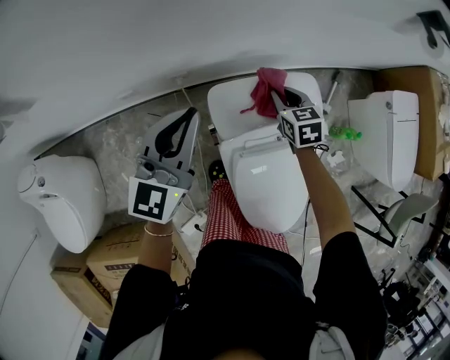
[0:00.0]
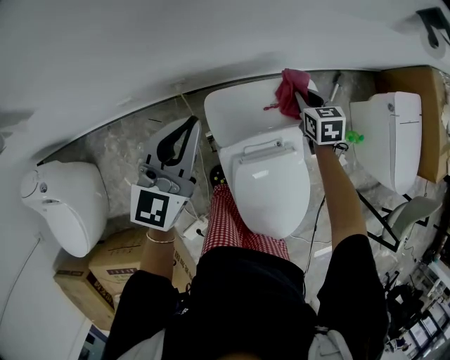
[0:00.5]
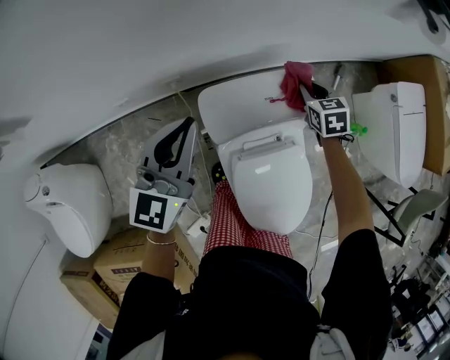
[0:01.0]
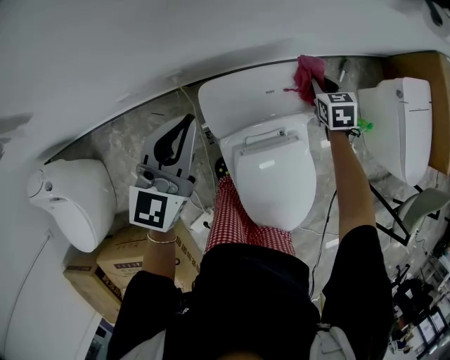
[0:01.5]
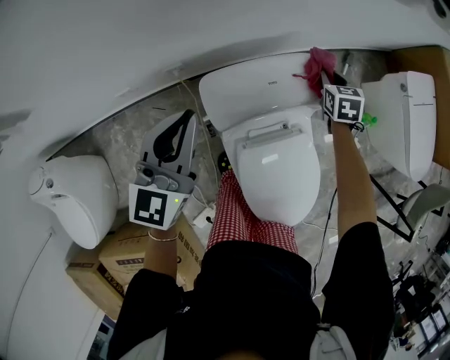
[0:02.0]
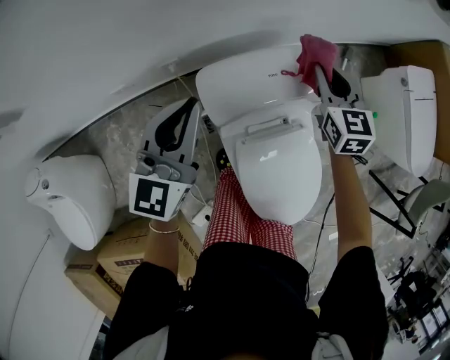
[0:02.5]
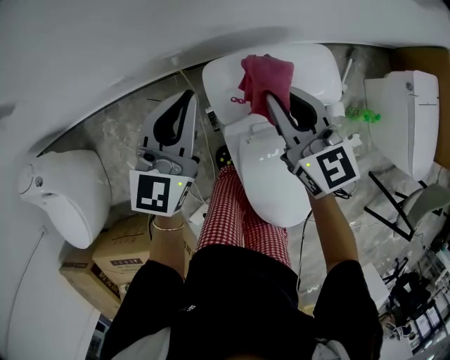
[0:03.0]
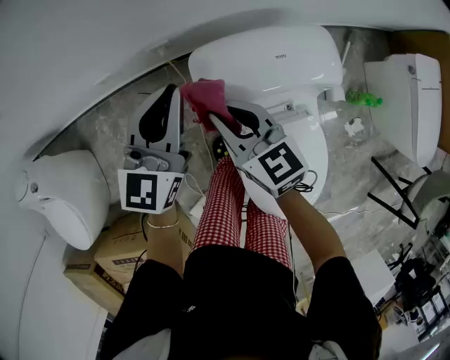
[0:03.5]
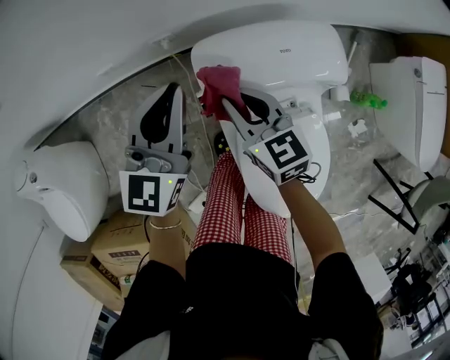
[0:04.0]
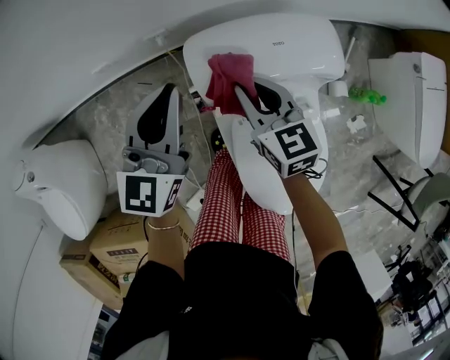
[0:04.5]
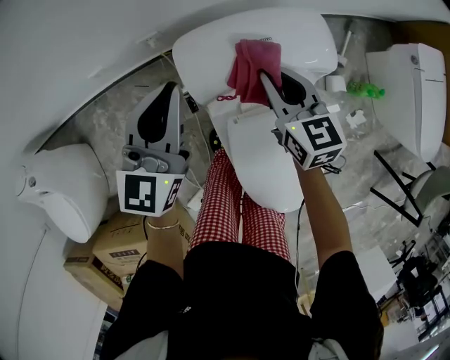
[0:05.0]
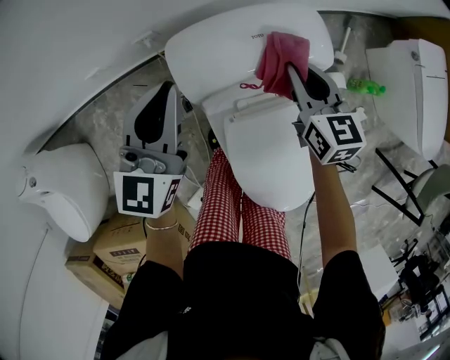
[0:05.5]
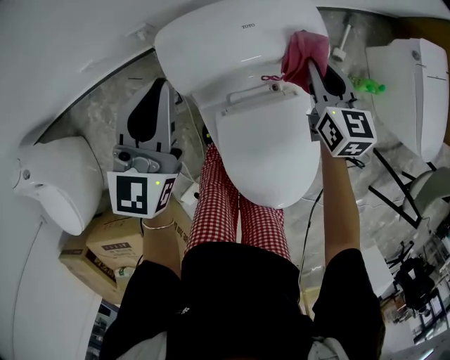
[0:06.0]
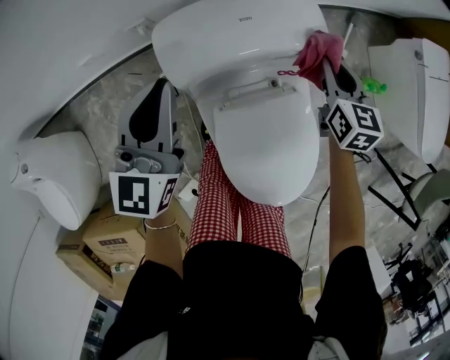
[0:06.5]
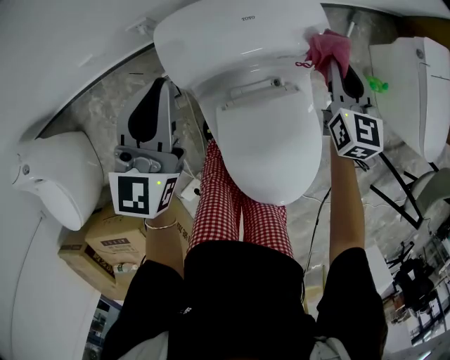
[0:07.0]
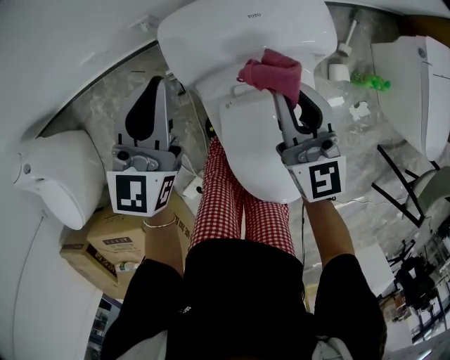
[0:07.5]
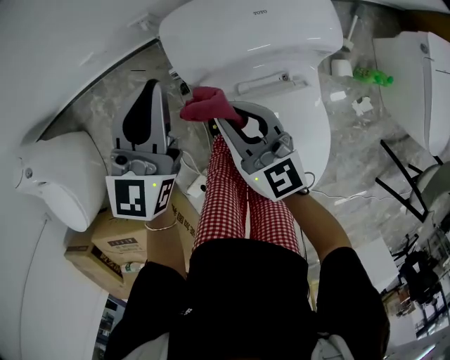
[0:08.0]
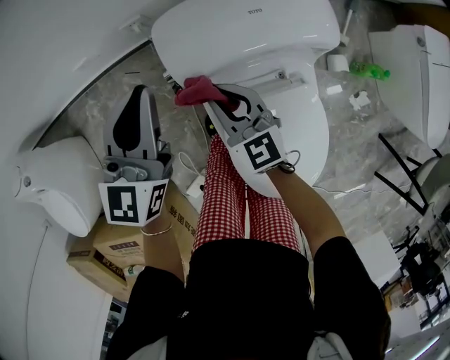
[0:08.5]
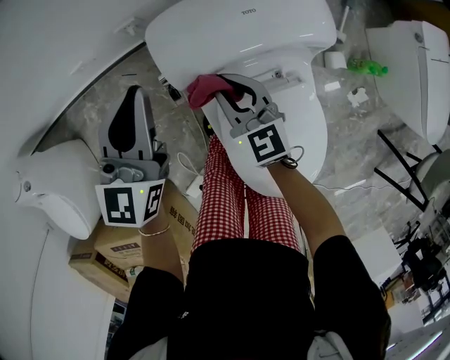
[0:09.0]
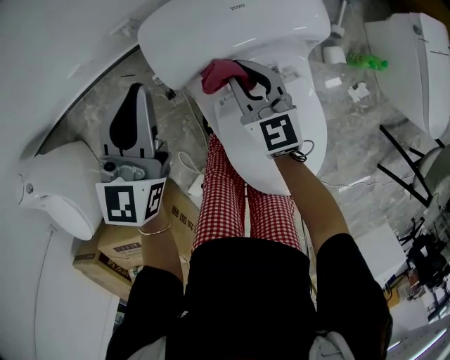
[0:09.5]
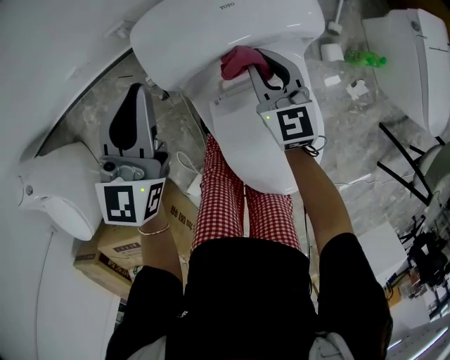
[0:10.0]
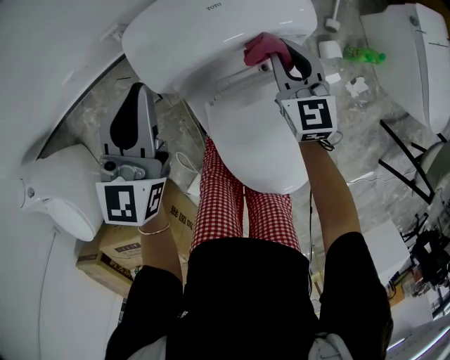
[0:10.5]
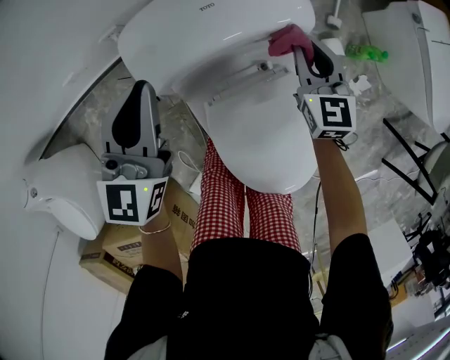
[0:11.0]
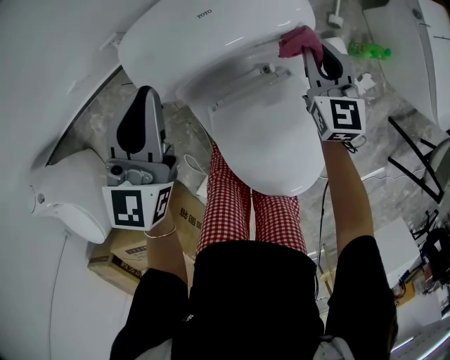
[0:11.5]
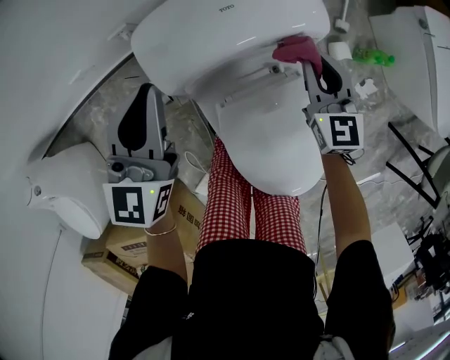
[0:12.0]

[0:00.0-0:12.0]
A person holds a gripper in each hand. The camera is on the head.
0:00.0 to 0:02.0: The right gripper moves to the right, some 15 cm.
0:02.0 to 0:04.0: The right gripper moves to the left and backward, approximately 35 cm, and turns by roughly 40 degrees; the left gripper goes some 10 cm downward.
0:04.0 to 0:06.0: The right gripper moves to the right, some 25 cm, and turns by some 30 degrees, while the left gripper heads to the right, covering roughly 5 cm.
0:06.0 to 0:08.0: The right gripper heads to the left and backward, covering roughly 25 cm, and swivels approximately 30 degrees.
0:08.0 to 0:10.0: The right gripper heads to the right, forward and downward, covering roughly 15 cm, and rotates some 20 degrees.
0:10.0 to 0:12.0: The right gripper goes about 10 cm to the right.

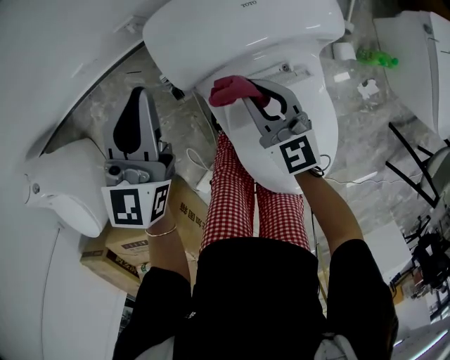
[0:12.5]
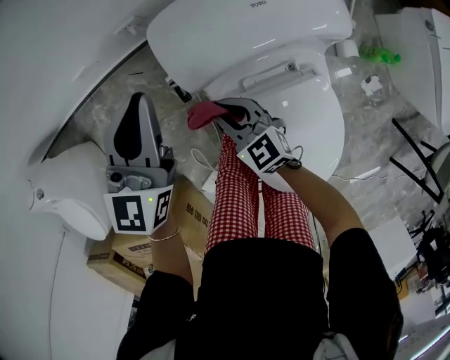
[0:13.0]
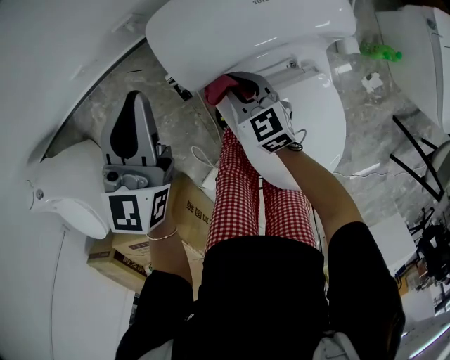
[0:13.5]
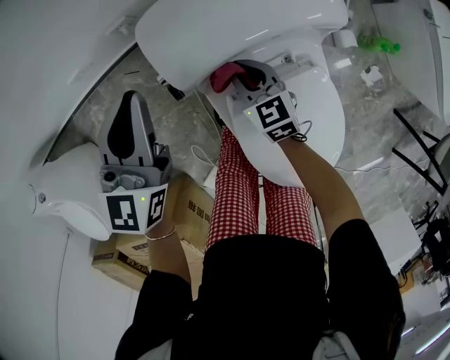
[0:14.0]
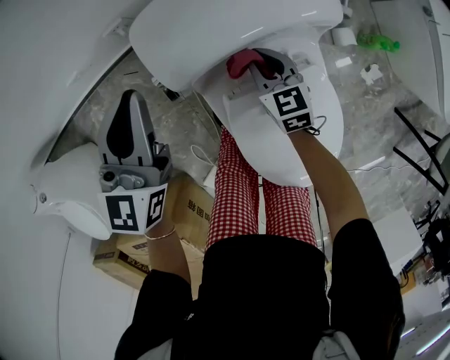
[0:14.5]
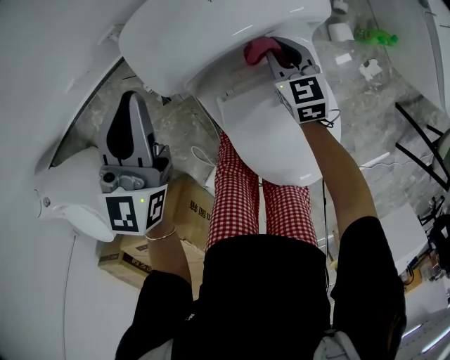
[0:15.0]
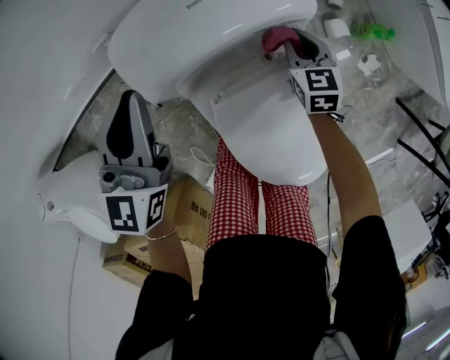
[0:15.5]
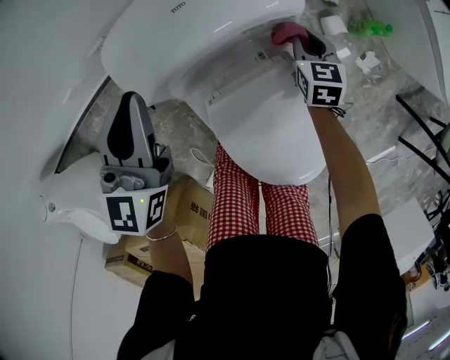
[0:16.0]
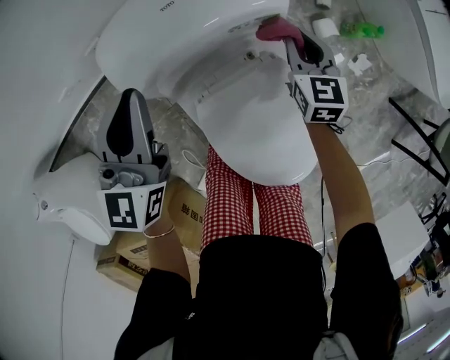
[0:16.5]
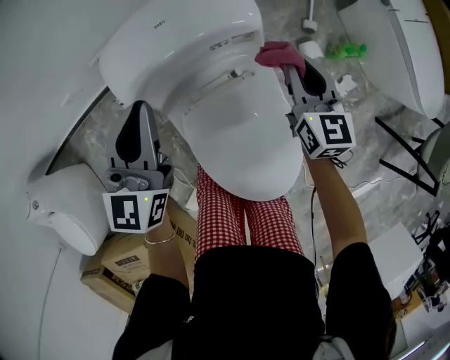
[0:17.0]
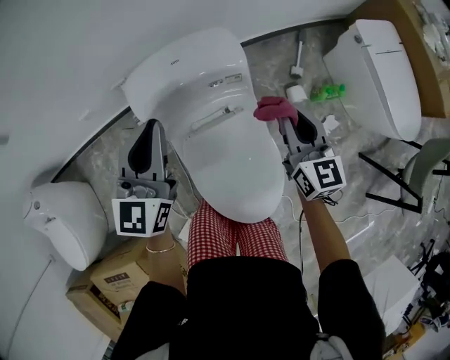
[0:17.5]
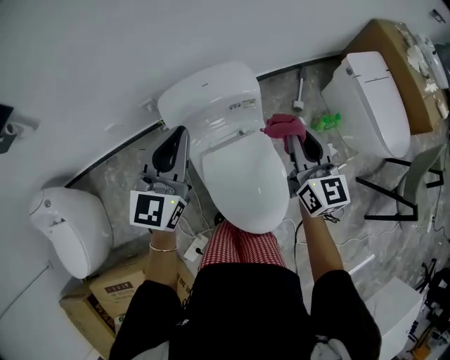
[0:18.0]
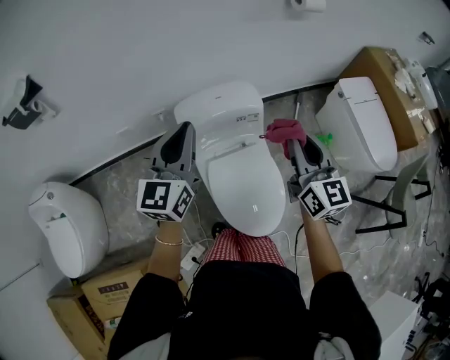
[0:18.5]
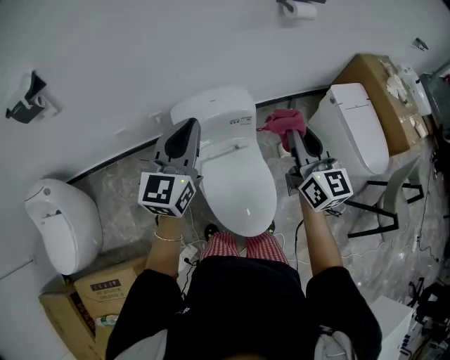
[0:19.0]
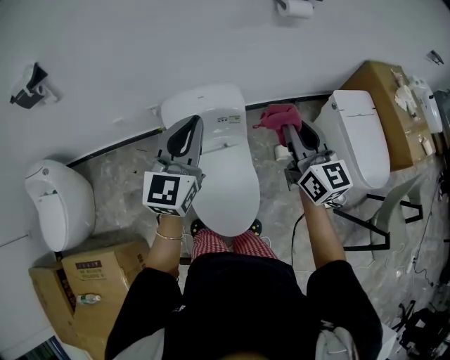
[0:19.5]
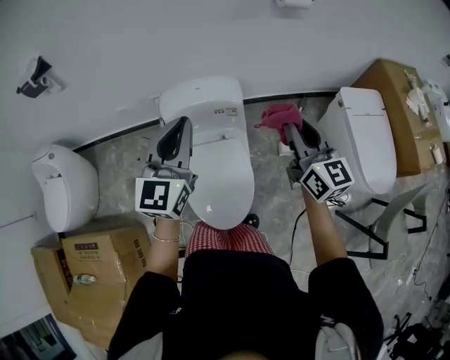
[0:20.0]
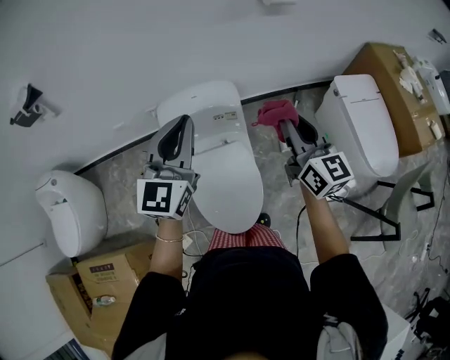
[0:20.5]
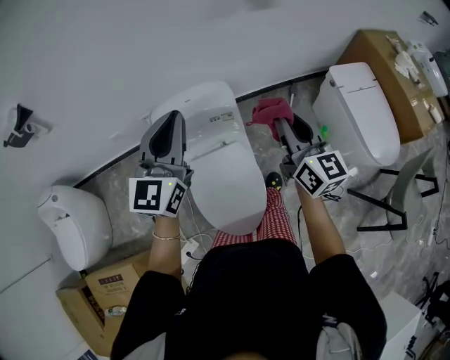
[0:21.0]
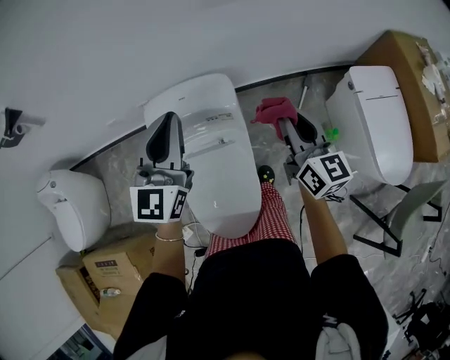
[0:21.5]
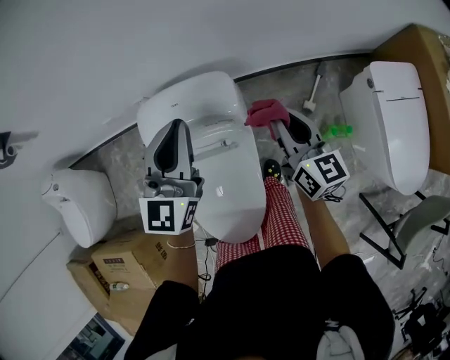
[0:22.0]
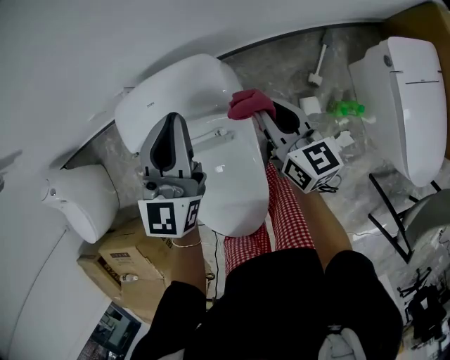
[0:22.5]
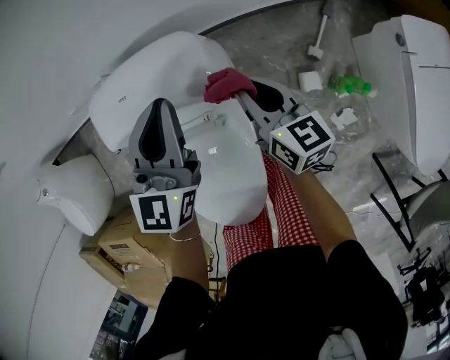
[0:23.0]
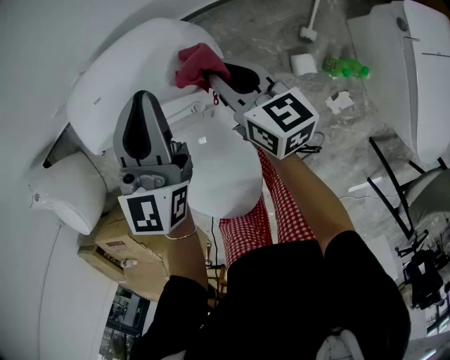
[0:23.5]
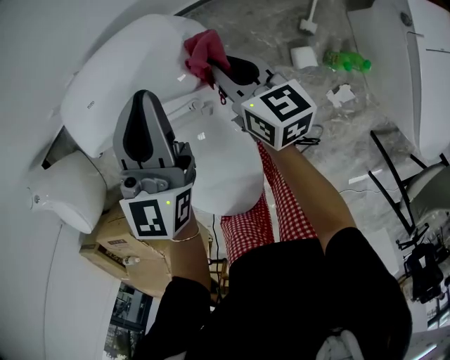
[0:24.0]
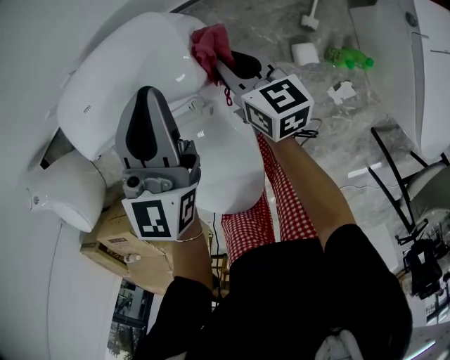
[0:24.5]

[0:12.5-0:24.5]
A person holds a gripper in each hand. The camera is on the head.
0:12.5 to 0:14.5: The right gripper is displaced downward by approximately 10 cm, and goes to the left and returns, roughly 10 cm each way.
0:14.5 to 0:16.5: The right gripper travels to the right by approximately 20 cm, and changes its angle by roughly 20 degrees. The left gripper moves to the right, approximately 10 cm.
0:16.5 to 0:18.5: The right gripper moves upward and backward, some 50 cm, and rotates roughly 30 degrees. Meanwhile the left gripper goes roughly 30 cm upward and backward.
0:18.5 to 0:20.5: The grippers both shift to the right by approximately 15 cm.
0:20.5 to 0:22.5: The right gripper shifts some 35 cm downward and forward, and rotates roughly 30 degrees, while the left gripper heads forward, downward and to the right, covering about 30 cm.
0:22.5 to 0:24.5: The two grippers go approximately 15 cm downward.

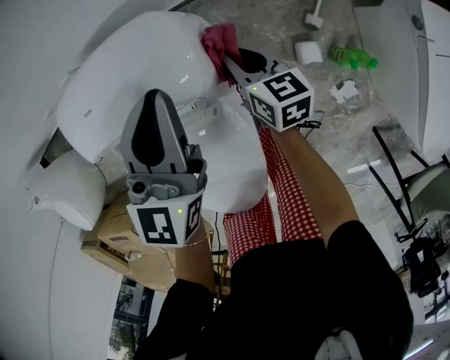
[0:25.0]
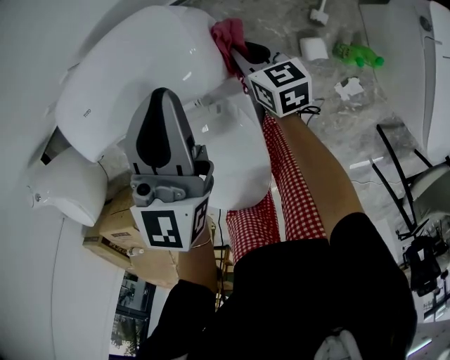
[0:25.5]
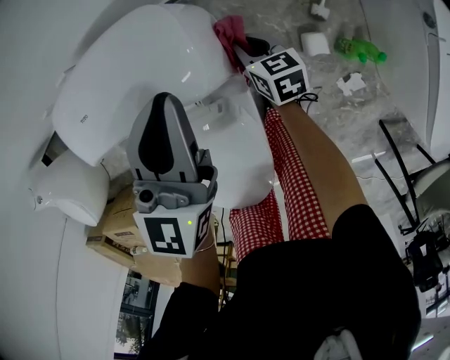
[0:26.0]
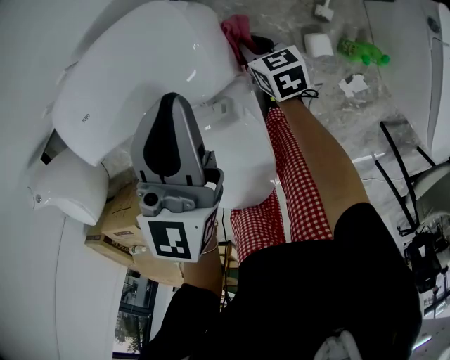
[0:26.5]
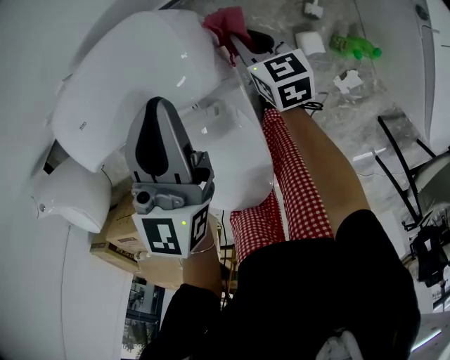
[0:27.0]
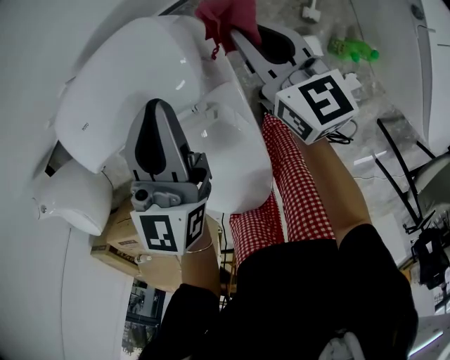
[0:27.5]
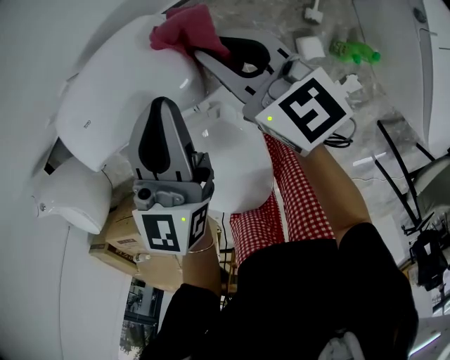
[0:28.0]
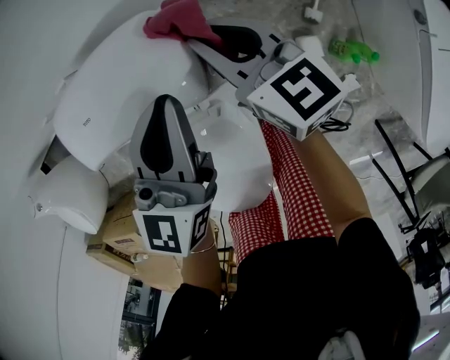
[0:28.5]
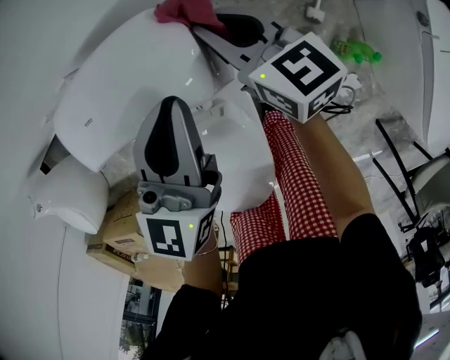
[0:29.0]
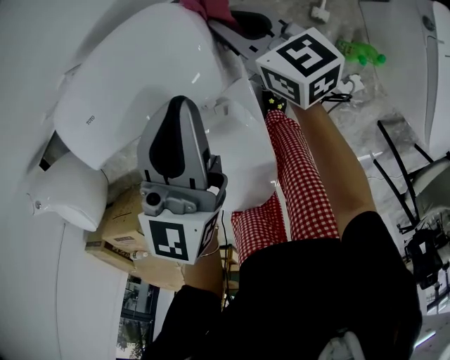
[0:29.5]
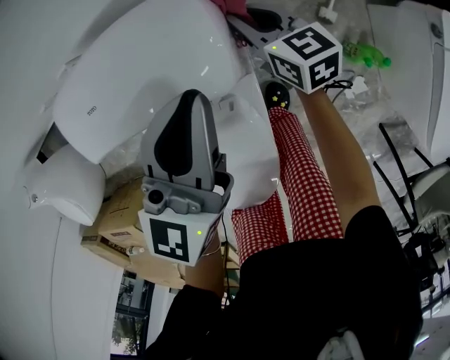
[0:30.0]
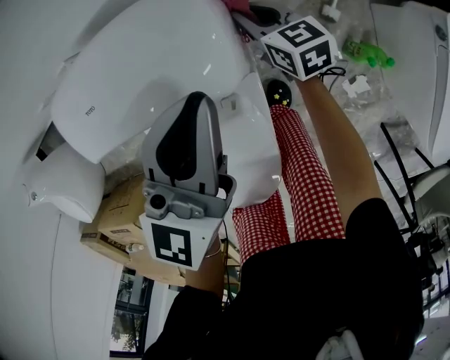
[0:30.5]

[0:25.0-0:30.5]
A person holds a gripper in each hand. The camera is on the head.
0:27.0 to 0:28.5: The right gripper moves upward, approximately 15 cm, and turns by about 30 degrees.
0:28.5 to 0:30.5: The right gripper moves downward, some 15 cm.
